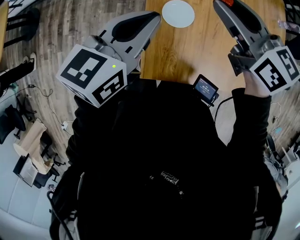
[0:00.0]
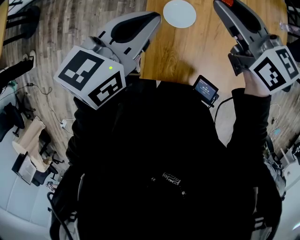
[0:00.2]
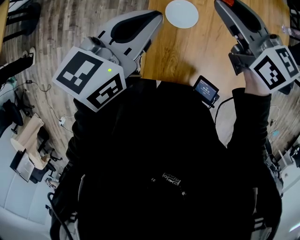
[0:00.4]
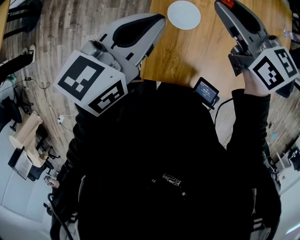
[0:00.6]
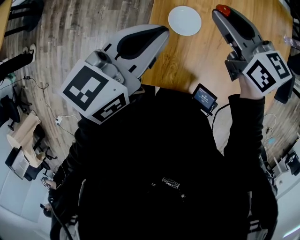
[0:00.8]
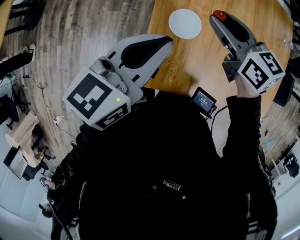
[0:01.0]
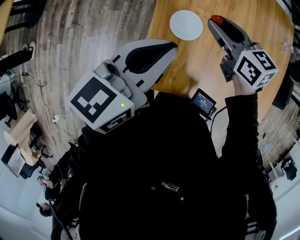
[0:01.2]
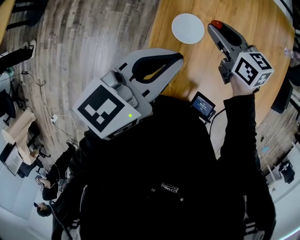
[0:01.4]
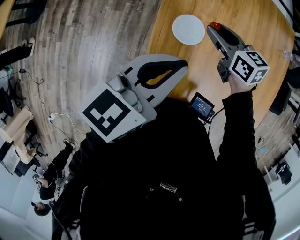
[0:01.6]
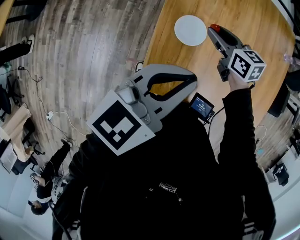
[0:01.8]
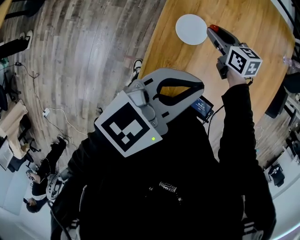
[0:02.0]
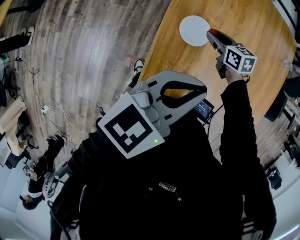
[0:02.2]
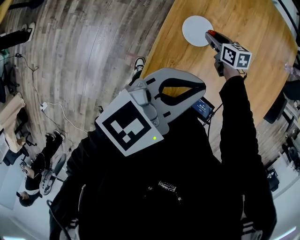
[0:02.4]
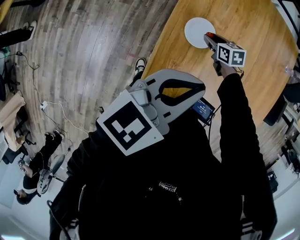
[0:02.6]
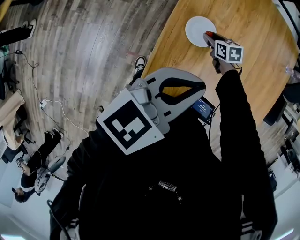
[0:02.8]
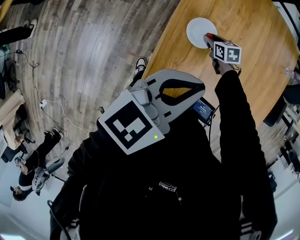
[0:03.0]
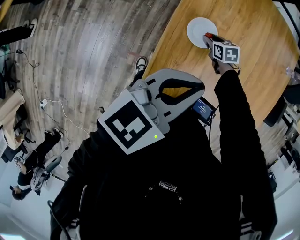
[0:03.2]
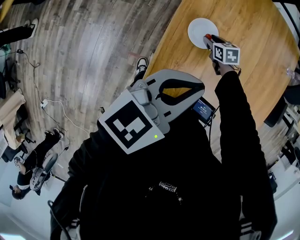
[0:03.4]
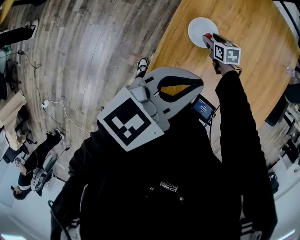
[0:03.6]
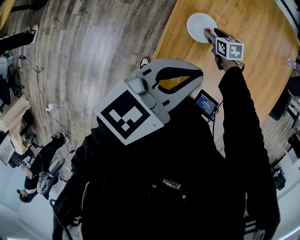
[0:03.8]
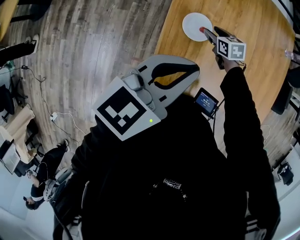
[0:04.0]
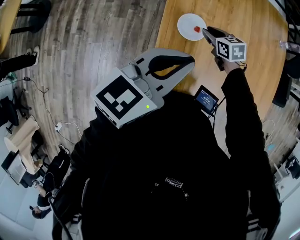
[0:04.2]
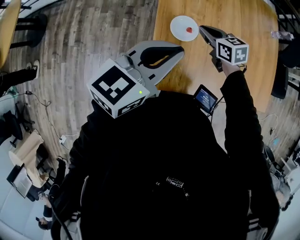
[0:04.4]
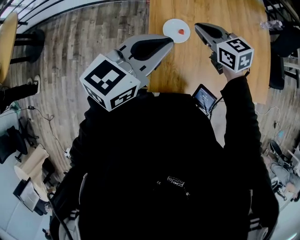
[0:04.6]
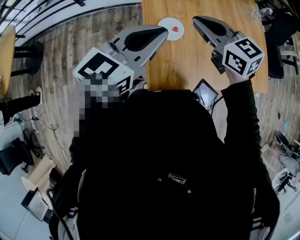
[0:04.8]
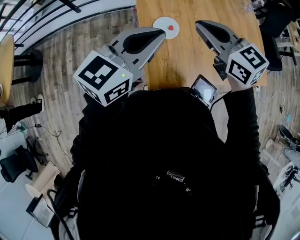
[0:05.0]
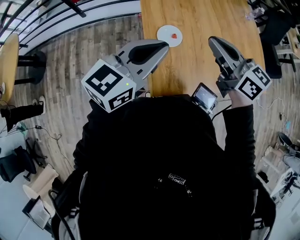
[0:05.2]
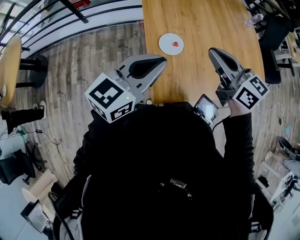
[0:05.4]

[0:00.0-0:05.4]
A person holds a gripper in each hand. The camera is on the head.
0:00.0 to 0:01.4: The right gripper moves downward, approximately 15 cm.
0:01.4 to 0:02.8: The left gripper heads backward, covering about 5 cm; the right gripper moves downward, some 20 cm, and turns by approximately 30 degrees.
0:02.8 to 0:04.0: The right gripper shifts by roughly 5 cm.
0:04.0 to 0:05.4: The right gripper heads upward and backward, covering some 30 cm, angles its fingers upward, by approximately 40 degrees, and closes. Meanwhile the left gripper heads to the left, covering roughly 5 cm.

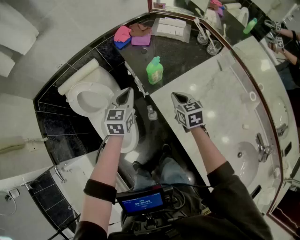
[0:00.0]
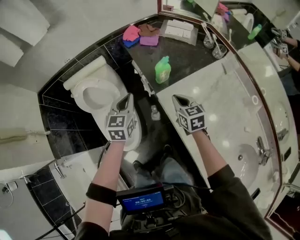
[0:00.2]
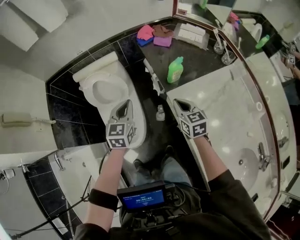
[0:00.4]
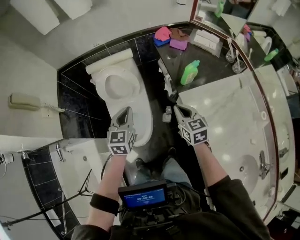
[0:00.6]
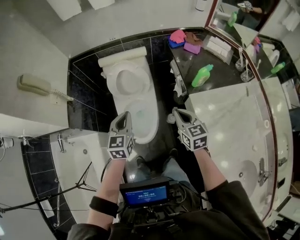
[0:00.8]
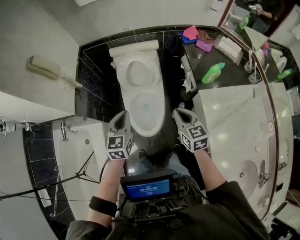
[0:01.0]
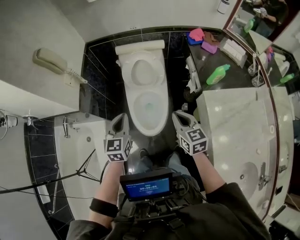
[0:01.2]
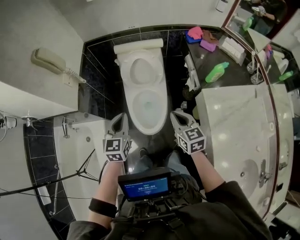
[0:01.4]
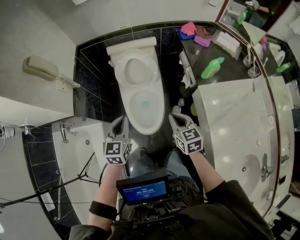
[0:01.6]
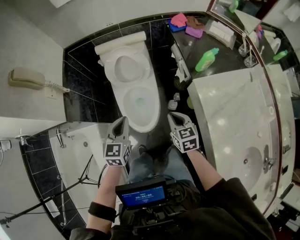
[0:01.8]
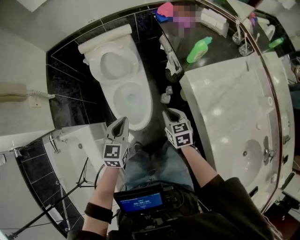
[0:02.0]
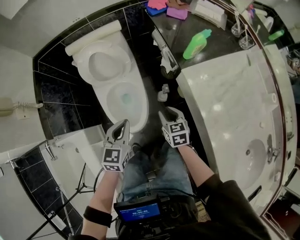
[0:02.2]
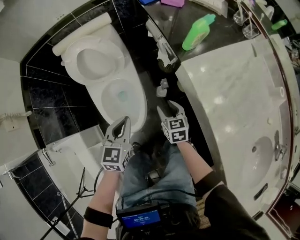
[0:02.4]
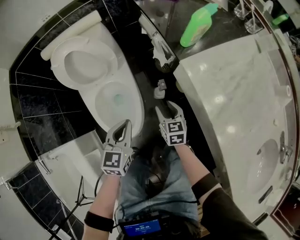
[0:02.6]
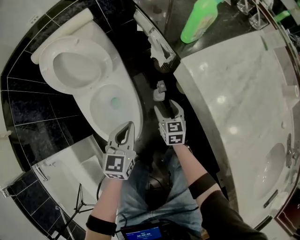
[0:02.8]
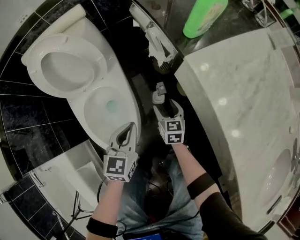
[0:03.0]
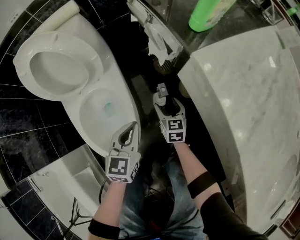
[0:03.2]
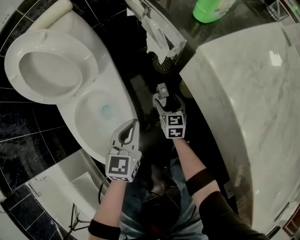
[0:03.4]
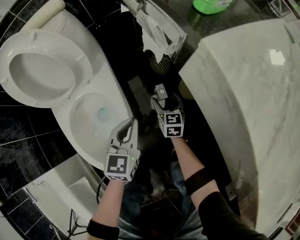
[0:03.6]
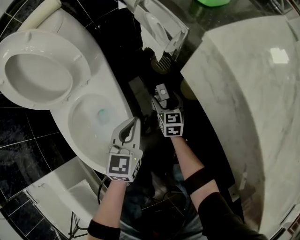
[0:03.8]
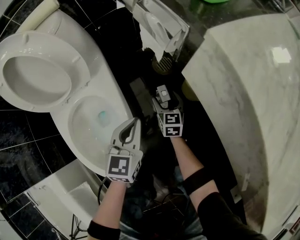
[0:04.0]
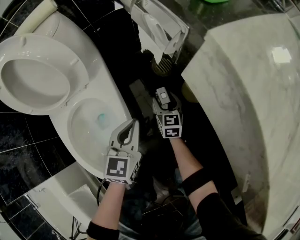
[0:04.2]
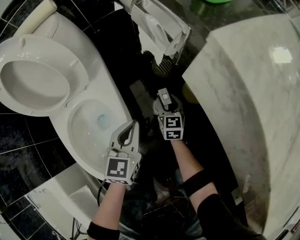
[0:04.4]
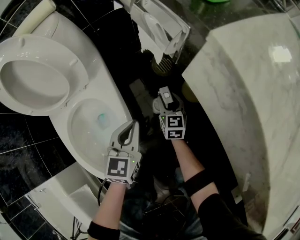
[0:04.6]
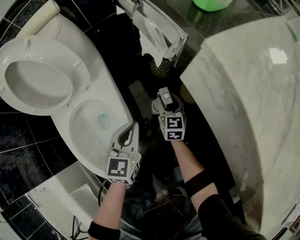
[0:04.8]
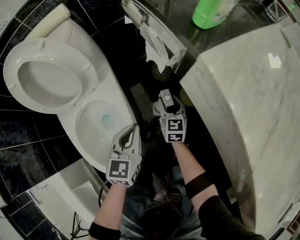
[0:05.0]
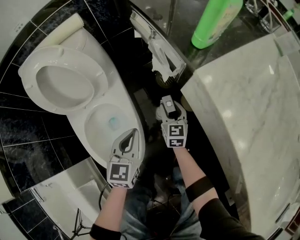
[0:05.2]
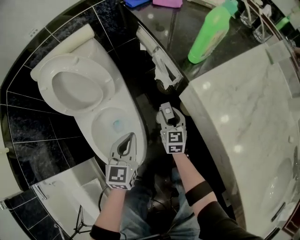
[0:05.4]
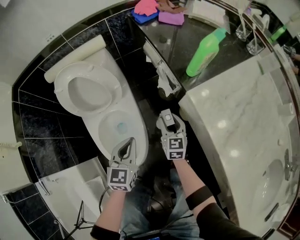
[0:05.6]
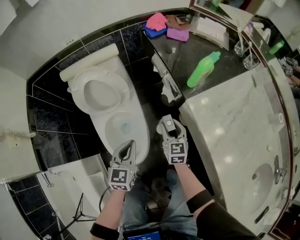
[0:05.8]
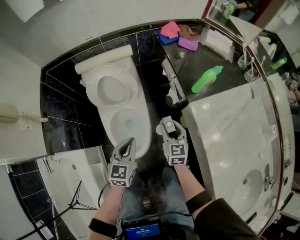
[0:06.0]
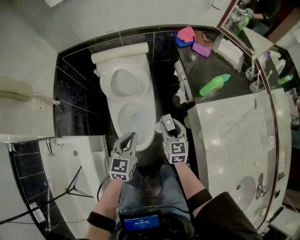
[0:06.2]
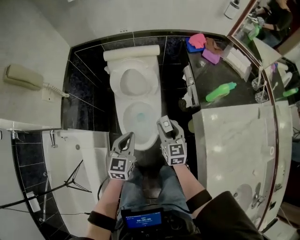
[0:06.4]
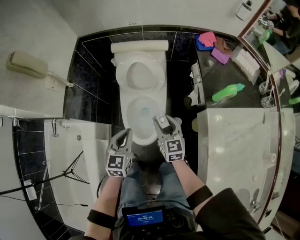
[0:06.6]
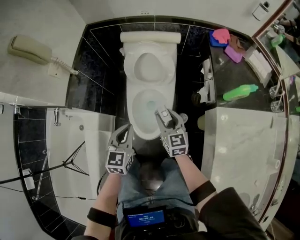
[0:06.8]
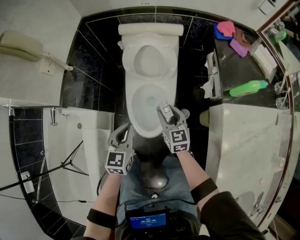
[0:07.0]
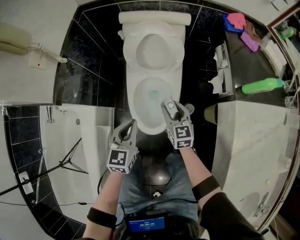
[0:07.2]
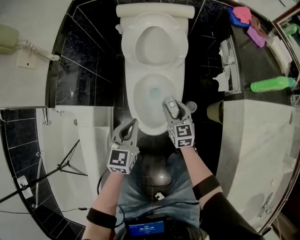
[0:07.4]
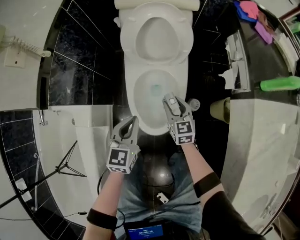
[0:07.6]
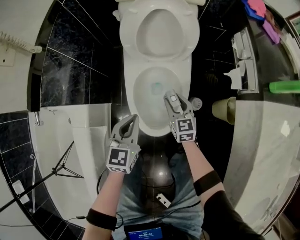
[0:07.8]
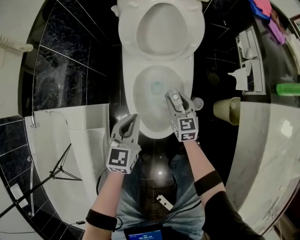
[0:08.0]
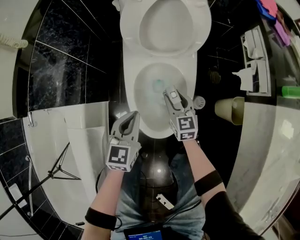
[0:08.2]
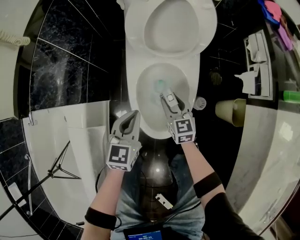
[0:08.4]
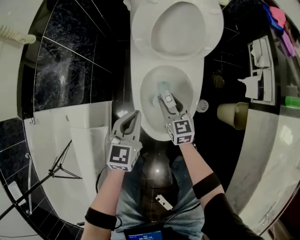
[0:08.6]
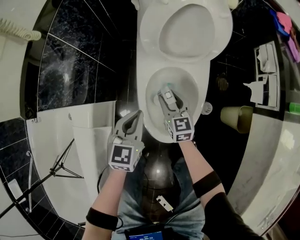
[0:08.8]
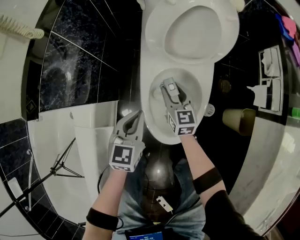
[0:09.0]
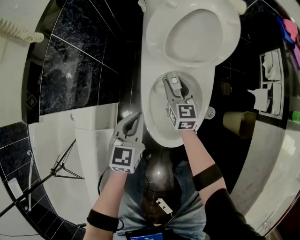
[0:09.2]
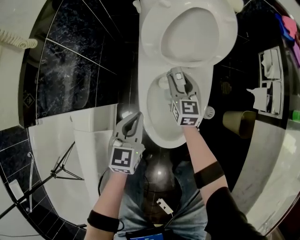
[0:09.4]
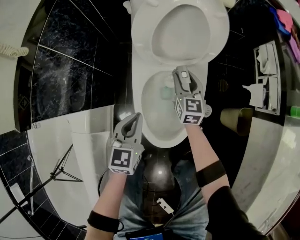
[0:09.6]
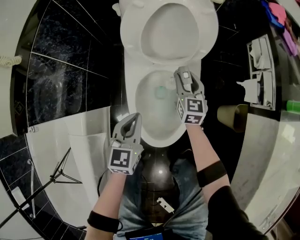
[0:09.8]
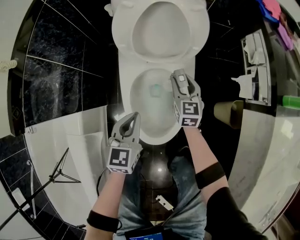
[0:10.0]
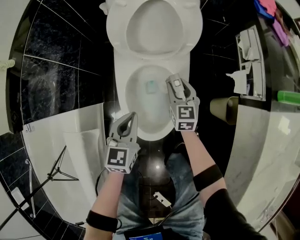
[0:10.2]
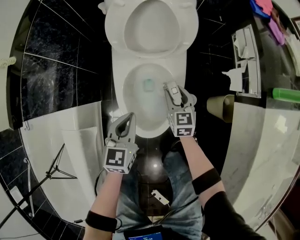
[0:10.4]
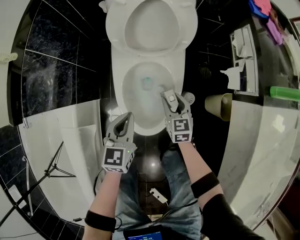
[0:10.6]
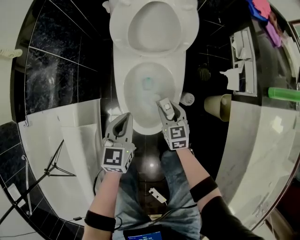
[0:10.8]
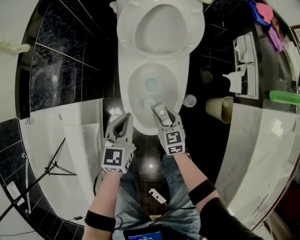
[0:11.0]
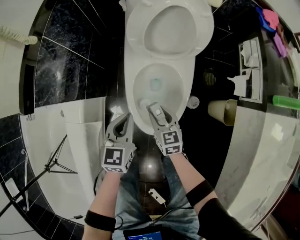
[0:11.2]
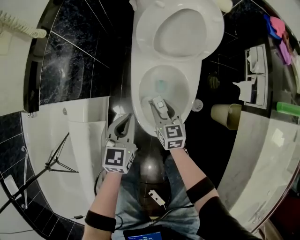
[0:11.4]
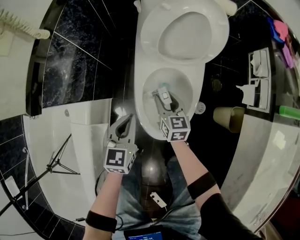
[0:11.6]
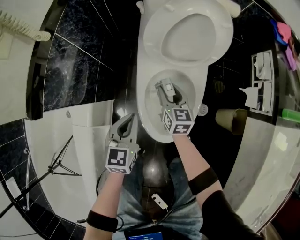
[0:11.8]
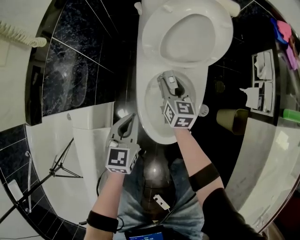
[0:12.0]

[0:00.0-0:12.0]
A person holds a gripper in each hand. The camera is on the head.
0:00.0 to 0:01.6: The right gripper moves about 35 cm, and swivels approximately 20 degrees. Meanwhile the left gripper ends up roughly 40 cm from where it was, and turns by about 20 degrees.
0:01.6 to 0:03.0: The two grippers go about 40 cm downward. The left gripper rotates about 30 degrees; the right gripper turns by some 30 degrees, and opens its fingers.
0:03.0 to 0:04.4: The grippers both shift downward and forward by approximately 20 cm.
0:04.4 to 0:06.0: Both grippers travel together upward, roughly 40 cm.
0:06.0 to 0:07.6: The left gripper ends up about 20 cm from where it was. The right gripper is displaced downward by about 20 cm, and rotates some 20 degrees.
0:07.6 to 0:09.0: The left gripper shifts roughly 15 cm downward, to the left and forward; the right gripper travels to the left, forward and downward by about 15 cm.
0:09.0 to 0:10.4: The left gripper shifts about 10 cm to the right. The right gripper is displaced to the right by roughly 15 cm.
0:10.4 to 0:12.0: The right gripper travels to the left and forward by some 15 cm; the left gripper moves to the left, approximately 10 cm.

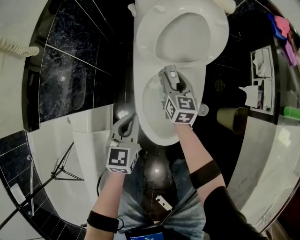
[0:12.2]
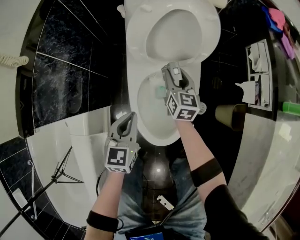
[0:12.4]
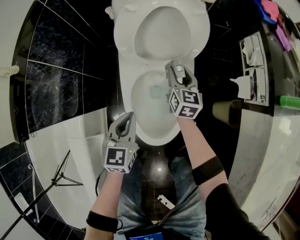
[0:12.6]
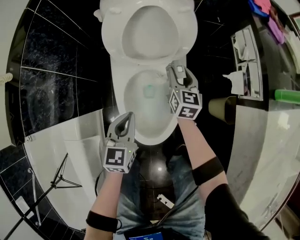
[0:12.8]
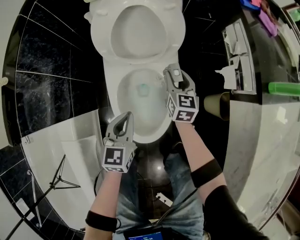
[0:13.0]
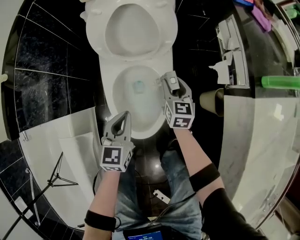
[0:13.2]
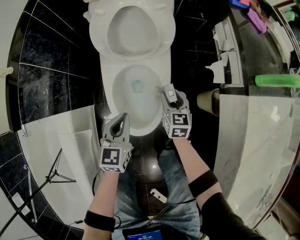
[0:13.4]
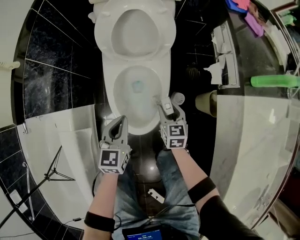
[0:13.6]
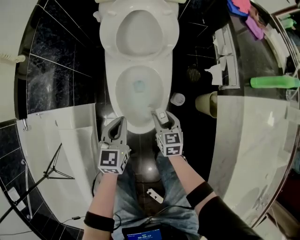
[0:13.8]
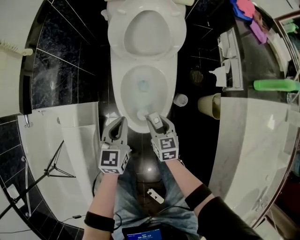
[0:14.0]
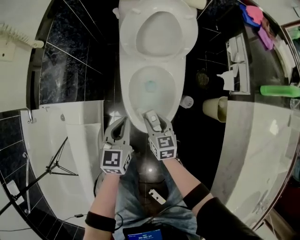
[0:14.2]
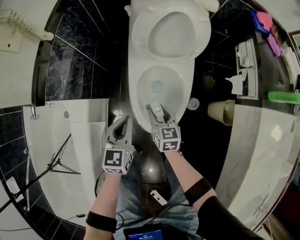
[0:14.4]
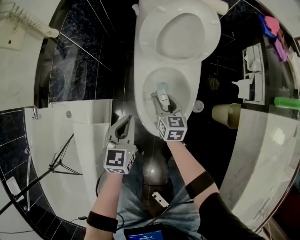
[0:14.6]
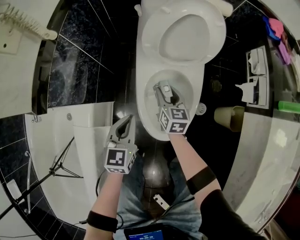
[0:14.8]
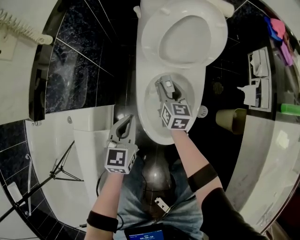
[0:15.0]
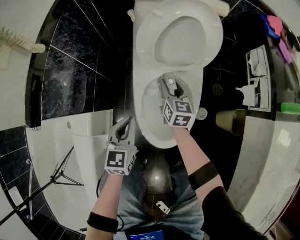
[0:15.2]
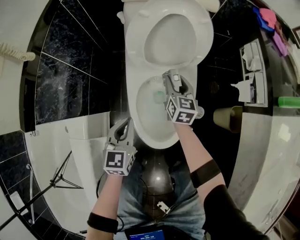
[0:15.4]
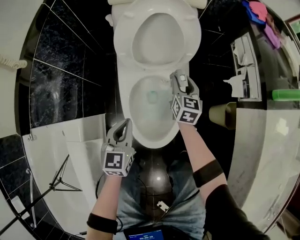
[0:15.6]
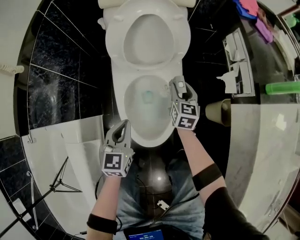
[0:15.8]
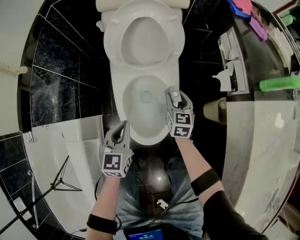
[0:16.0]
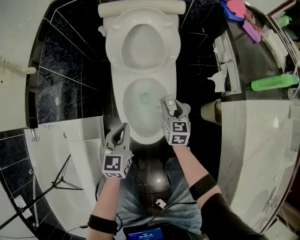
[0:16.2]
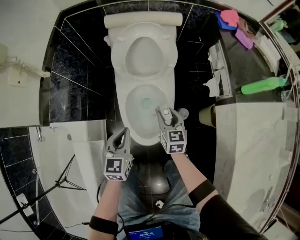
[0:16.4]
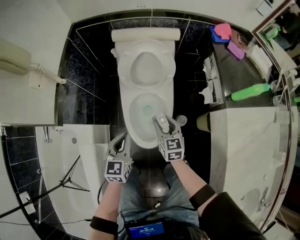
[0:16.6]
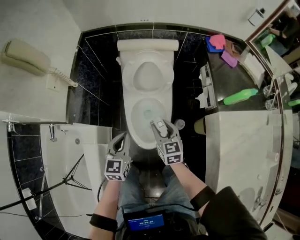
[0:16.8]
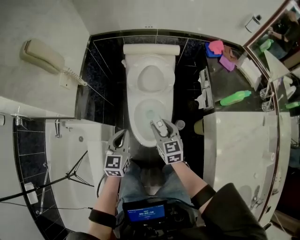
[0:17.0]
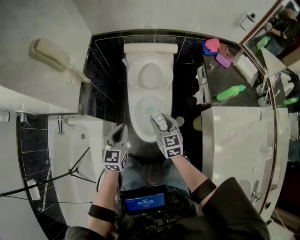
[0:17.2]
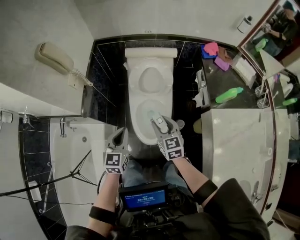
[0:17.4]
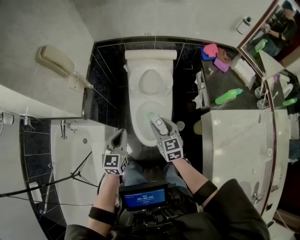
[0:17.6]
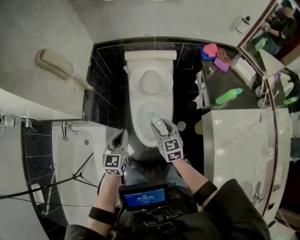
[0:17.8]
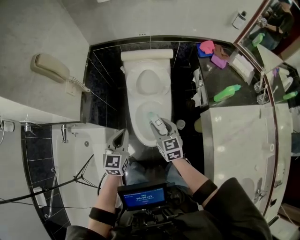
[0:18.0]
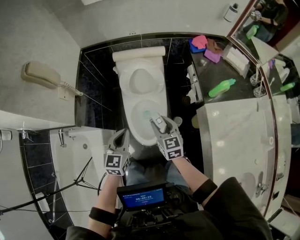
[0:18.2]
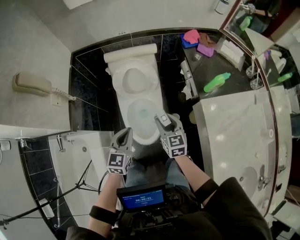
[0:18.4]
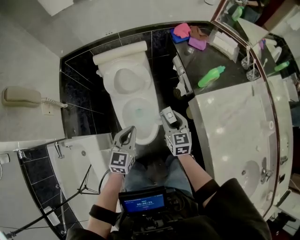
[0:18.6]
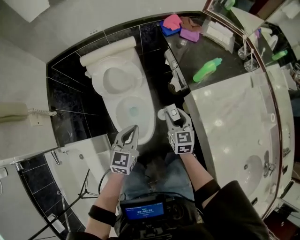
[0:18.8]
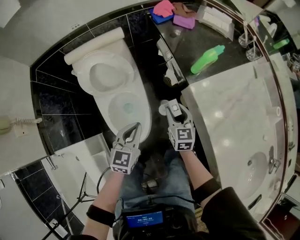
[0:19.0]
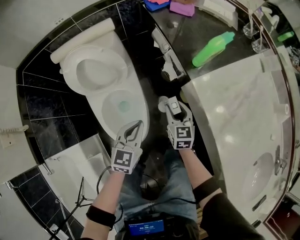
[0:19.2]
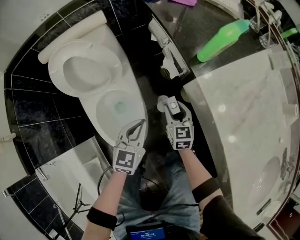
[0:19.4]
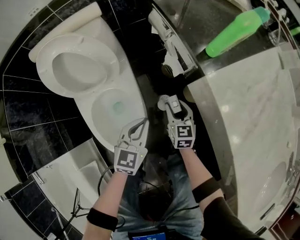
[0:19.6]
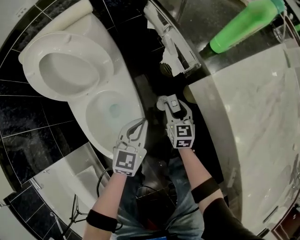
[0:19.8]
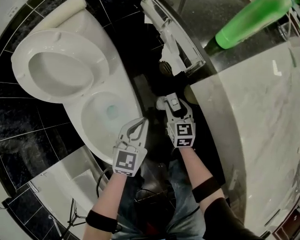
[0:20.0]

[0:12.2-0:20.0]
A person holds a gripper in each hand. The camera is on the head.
0:12.2 to 0:13.8: The left gripper moves to the right and backward, some 10 cm, while the right gripper travels backward and to the right by roughly 25 cm.
0:13.8 to 0:15.4: The left gripper shifts about 10 cm to the left, forward and downward, while the right gripper travels forward by roughly 25 cm, and changes its angle by about 20 degrees.
0:15.4 to 0:16.8: The right gripper shifts some 30 cm upward and backward; the left gripper is displaced upward by some 25 cm.
0:16.8 to 0:18.4: Both grippers travel together upward and to the right, approximately 10 cm.
0:18.4 to 0:20.0: Both grippers move downward, some 40 cm. The right gripper swivels some 20 degrees. The left gripper changes its angle by approximately 30 degrees.
